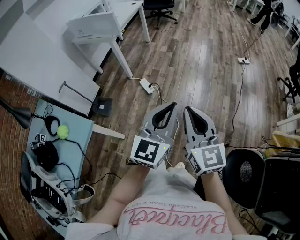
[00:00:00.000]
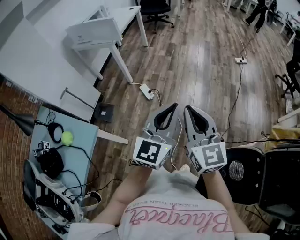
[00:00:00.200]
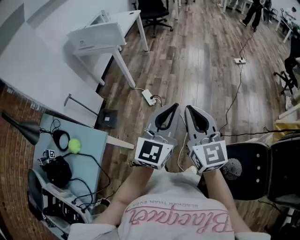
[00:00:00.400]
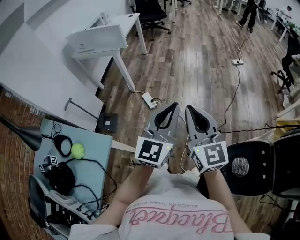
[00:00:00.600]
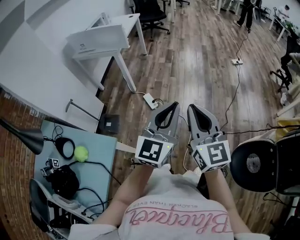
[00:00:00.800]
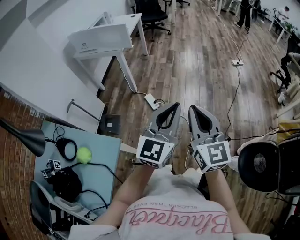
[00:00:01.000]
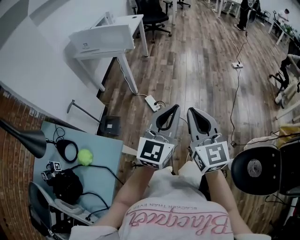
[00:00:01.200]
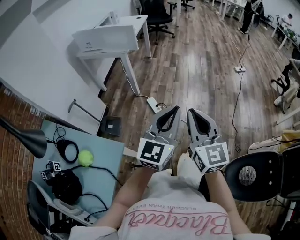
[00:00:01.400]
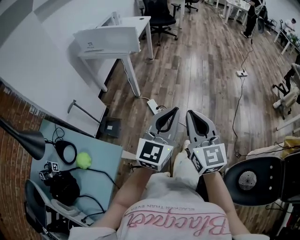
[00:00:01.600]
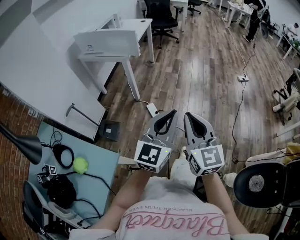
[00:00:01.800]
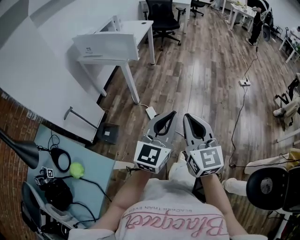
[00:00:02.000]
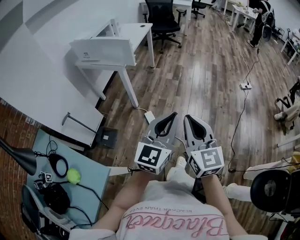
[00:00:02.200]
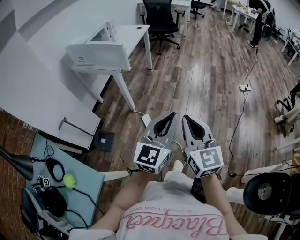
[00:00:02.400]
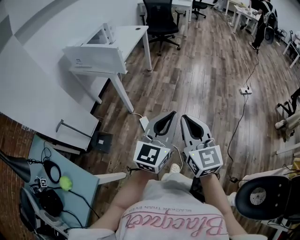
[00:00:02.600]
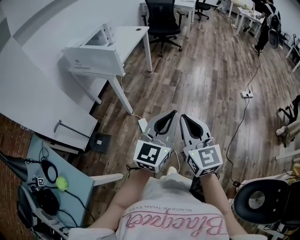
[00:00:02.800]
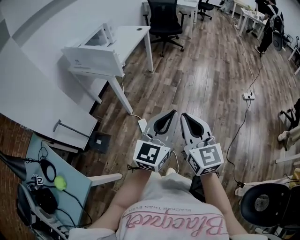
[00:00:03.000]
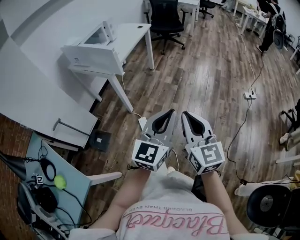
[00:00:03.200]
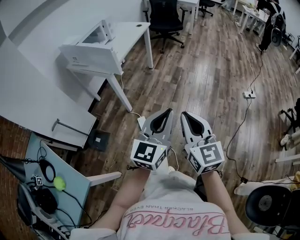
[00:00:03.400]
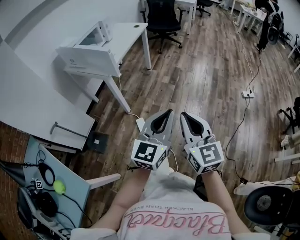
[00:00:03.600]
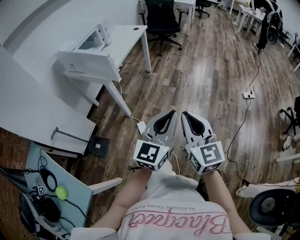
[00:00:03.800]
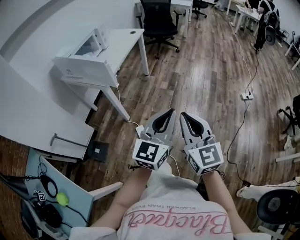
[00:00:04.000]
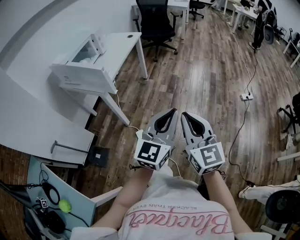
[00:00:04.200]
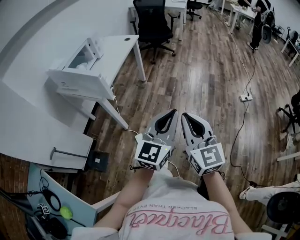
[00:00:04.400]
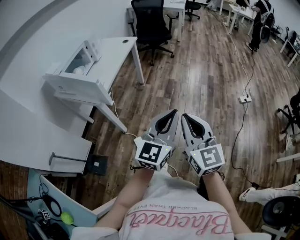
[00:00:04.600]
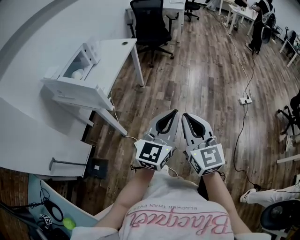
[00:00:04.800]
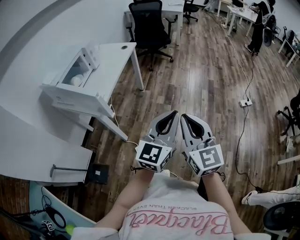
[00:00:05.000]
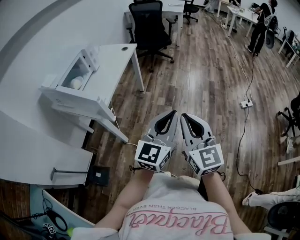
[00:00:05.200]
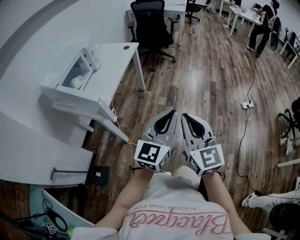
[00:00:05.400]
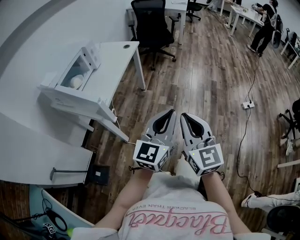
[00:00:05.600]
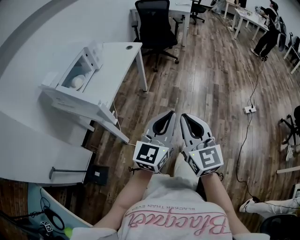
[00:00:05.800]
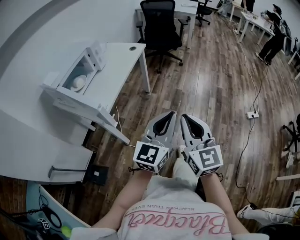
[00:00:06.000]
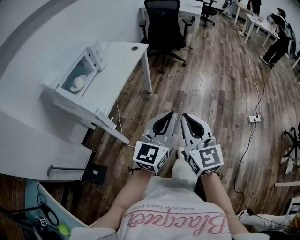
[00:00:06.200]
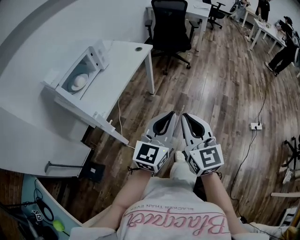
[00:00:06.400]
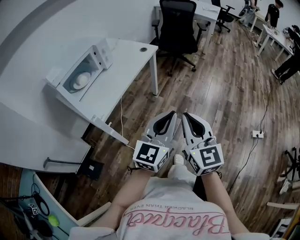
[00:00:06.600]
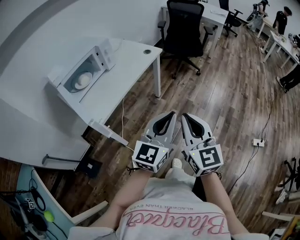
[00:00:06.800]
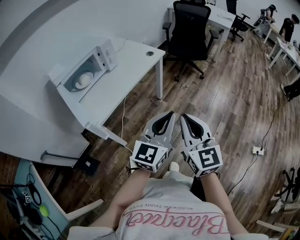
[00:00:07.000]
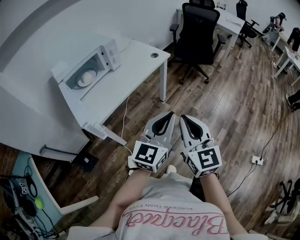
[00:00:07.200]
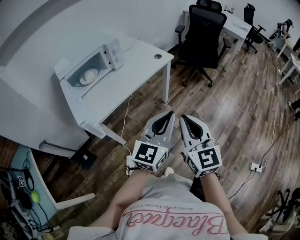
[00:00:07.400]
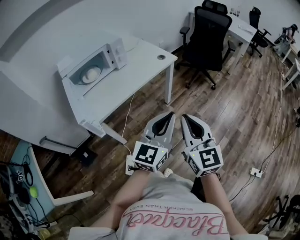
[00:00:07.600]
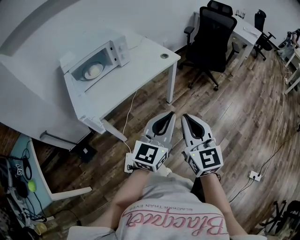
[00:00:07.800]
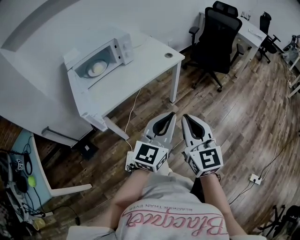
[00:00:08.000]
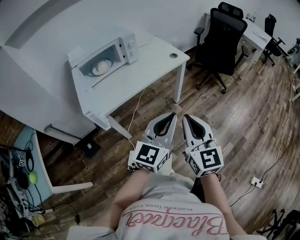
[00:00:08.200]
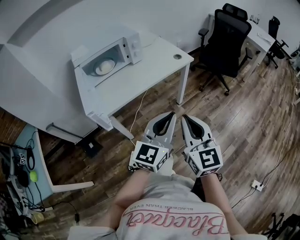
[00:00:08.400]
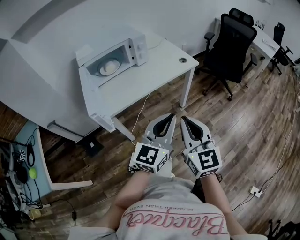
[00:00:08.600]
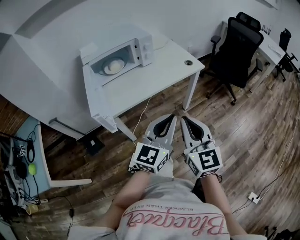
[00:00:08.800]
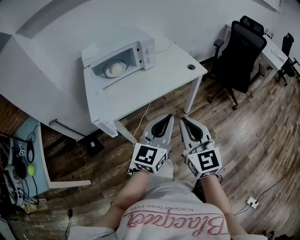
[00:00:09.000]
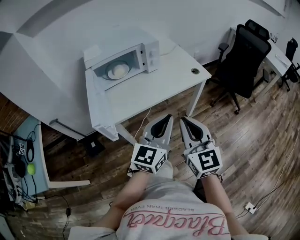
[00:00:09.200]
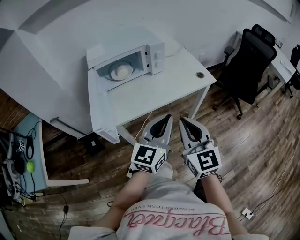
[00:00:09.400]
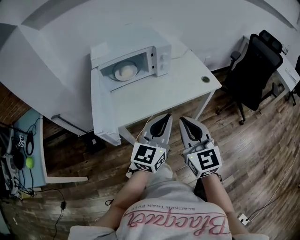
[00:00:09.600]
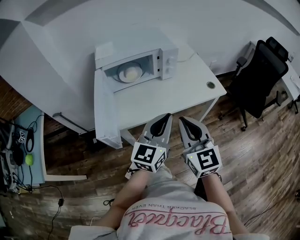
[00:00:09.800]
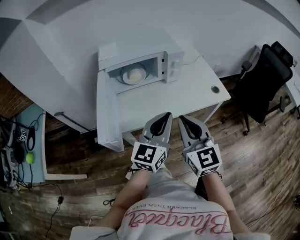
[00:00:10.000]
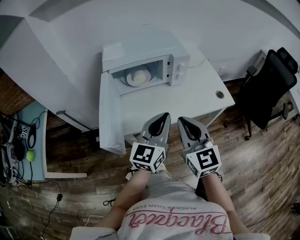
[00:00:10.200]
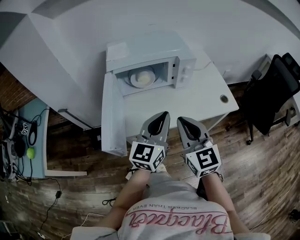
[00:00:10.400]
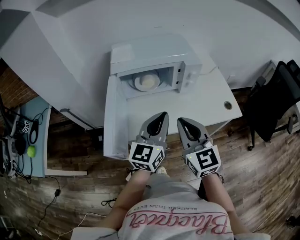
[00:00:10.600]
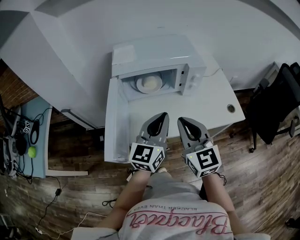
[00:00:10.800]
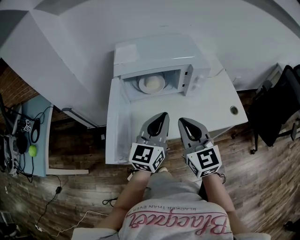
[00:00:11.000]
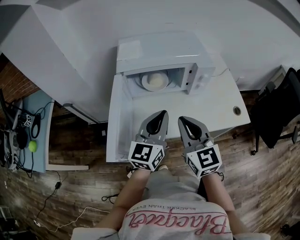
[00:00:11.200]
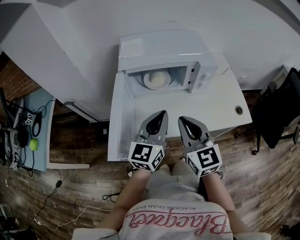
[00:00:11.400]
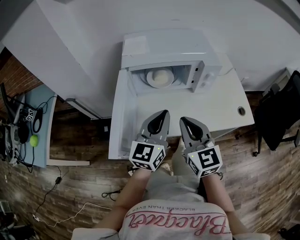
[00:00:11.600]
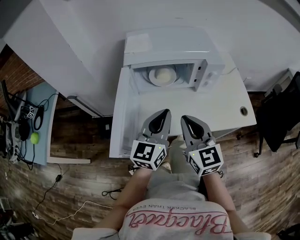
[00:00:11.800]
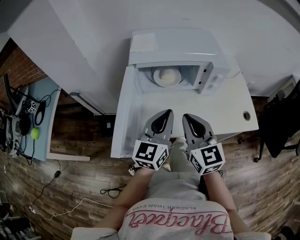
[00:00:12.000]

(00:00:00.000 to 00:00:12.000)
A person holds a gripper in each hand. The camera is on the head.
00:00:00.000 - 00:00:01.600: The grippers both shift to the left by approximately 20 cm.
00:00:01.600 - 00:00:03.000: The two grippers go roughly 30 cm forward and to the right.
00:00:03.000 - 00:00:04.400: The grippers both shift forward by about 15 cm.
00:00:04.400 - 00:00:06.000: The grippers both shift forward by roughly 20 cm.
00:00:06.000 - 00:00:07.600: The left gripper ends up roughly 25 cm from where it was, and changes its angle by some 30 degrees. Meanwhile the right gripper shifts by approximately 25 cm, and rotates roughly 30 degrees.
00:00:07.600 - 00:00:09.000: The grippers both shift to the left and forward by approximately 10 cm.
00:00:09.000 - 00:00:10.400: Both grippers travel together forward and to the left, roughly 20 cm. The left gripper turns by approximately 20 degrees; the right gripper rotates roughly 20 degrees.
00:00:10.400 - 00:00:12.000: The two grippers go roughly 10 cm forward and to the left.

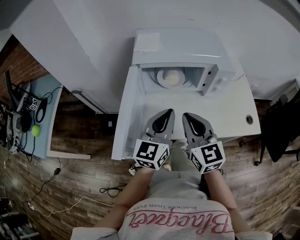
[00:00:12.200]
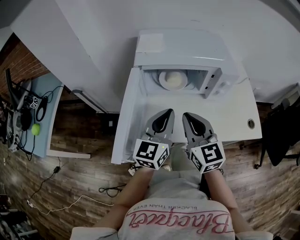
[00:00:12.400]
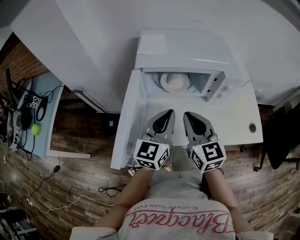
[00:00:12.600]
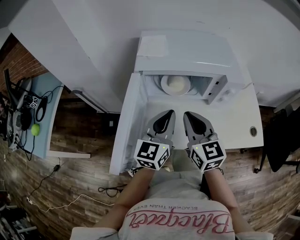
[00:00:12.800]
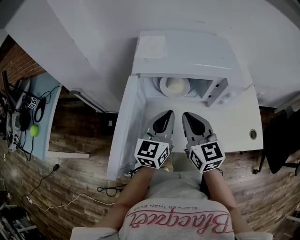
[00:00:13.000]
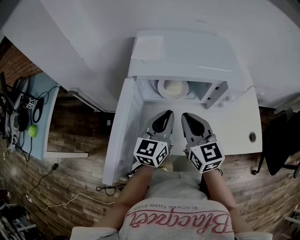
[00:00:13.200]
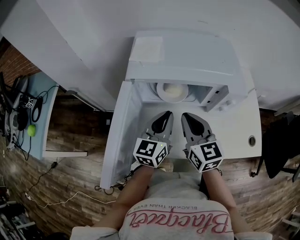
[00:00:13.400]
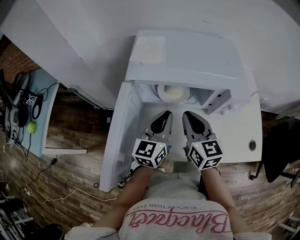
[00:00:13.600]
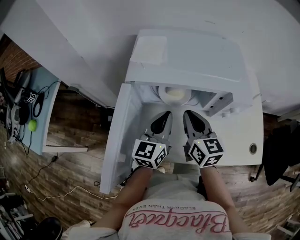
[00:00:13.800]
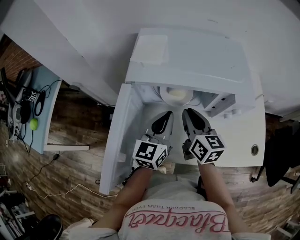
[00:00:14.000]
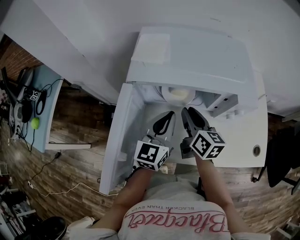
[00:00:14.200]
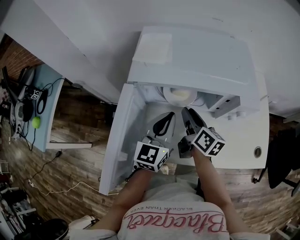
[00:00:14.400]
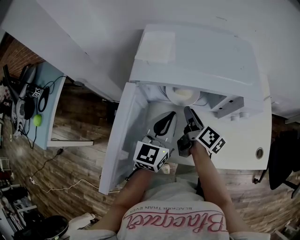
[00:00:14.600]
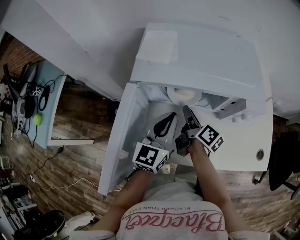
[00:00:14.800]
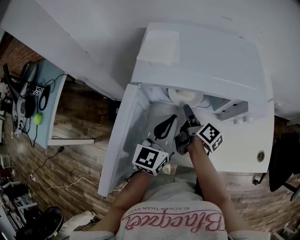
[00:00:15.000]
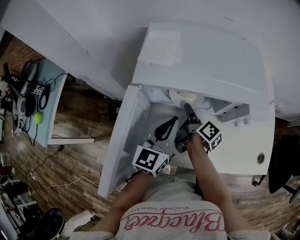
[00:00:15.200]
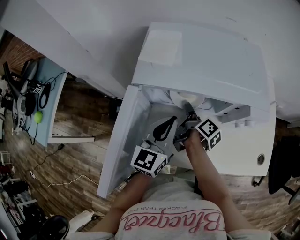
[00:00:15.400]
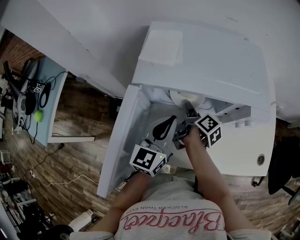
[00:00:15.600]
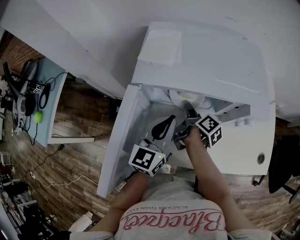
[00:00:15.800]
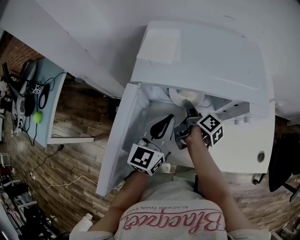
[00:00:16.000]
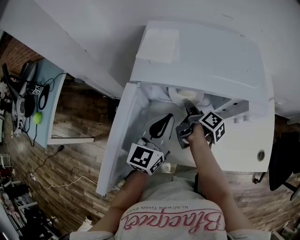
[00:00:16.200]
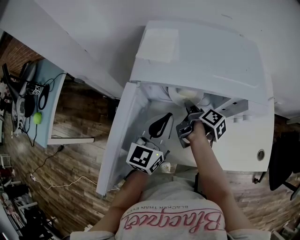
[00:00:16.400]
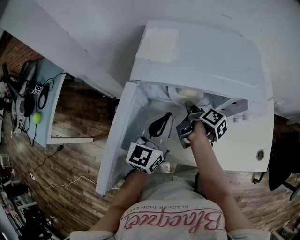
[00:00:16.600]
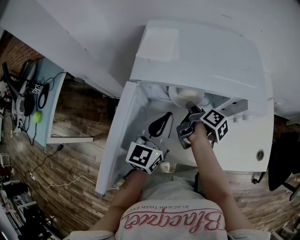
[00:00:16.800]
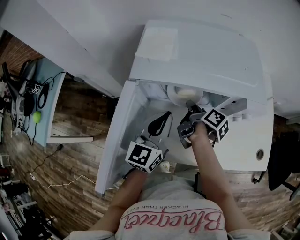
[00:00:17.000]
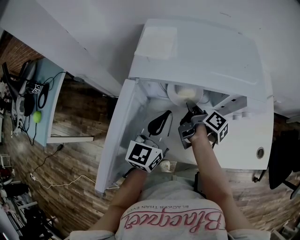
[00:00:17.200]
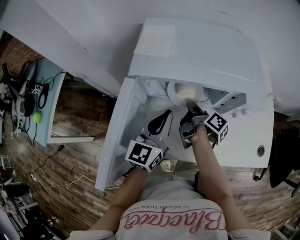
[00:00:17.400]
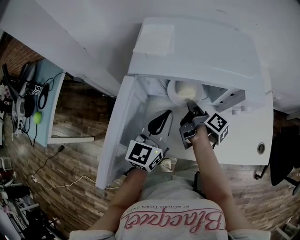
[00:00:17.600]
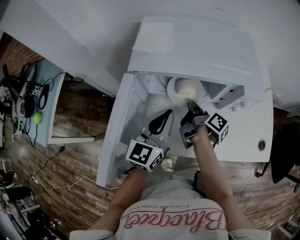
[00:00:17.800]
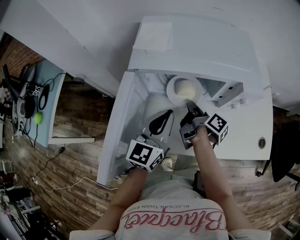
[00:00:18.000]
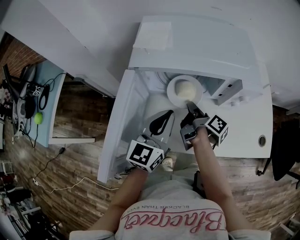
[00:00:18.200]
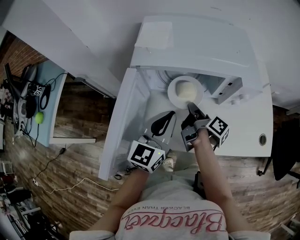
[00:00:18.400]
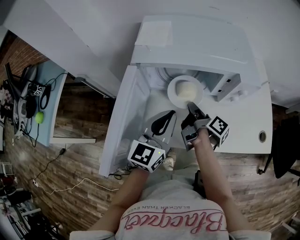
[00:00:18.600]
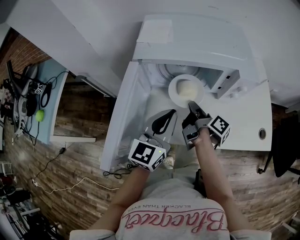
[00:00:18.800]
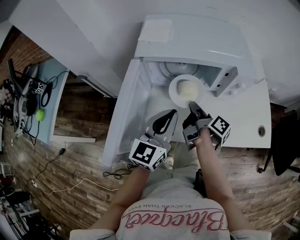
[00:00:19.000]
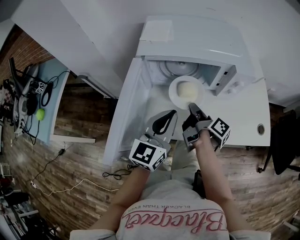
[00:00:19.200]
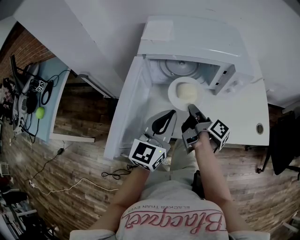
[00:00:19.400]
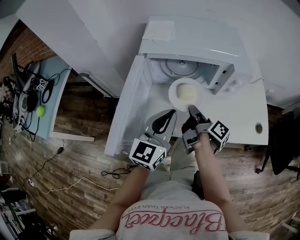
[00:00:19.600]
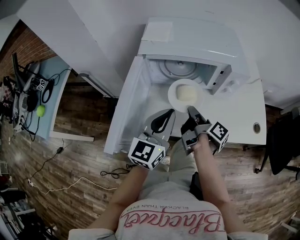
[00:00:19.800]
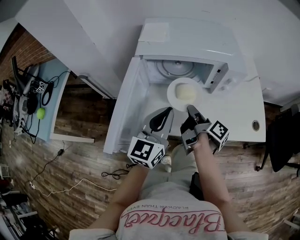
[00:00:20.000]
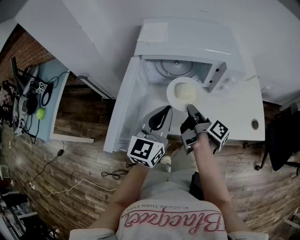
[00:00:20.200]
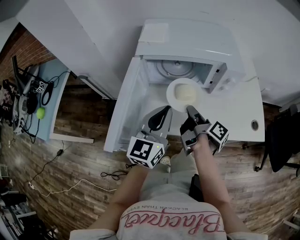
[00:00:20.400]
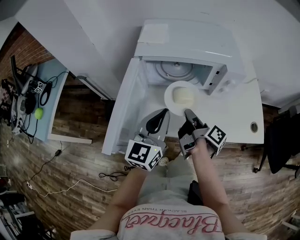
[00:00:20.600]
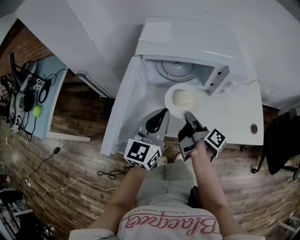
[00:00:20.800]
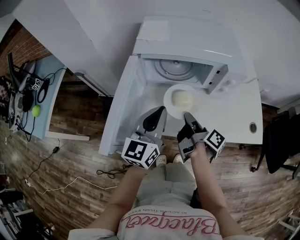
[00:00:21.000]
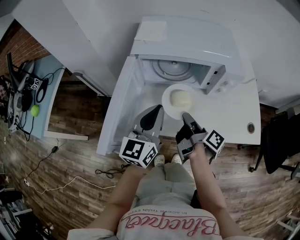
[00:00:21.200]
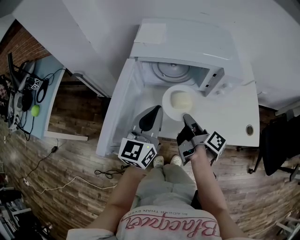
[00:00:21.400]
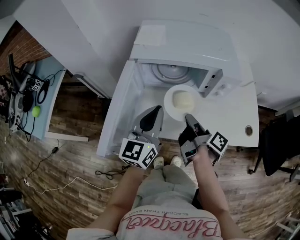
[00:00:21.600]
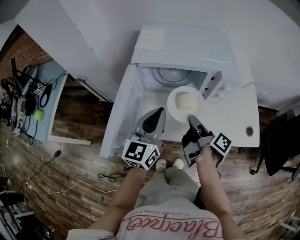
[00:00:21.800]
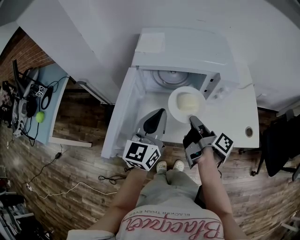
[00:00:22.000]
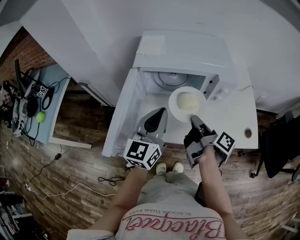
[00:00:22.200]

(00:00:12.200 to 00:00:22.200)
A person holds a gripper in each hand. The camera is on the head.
00:00:12.200 - 00:00:13.600: The left gripper moves forward and downward, about 15 cm. The right gripper heads forward, covering roughly 15 cm.
00:00:13.600 - 00:00:15.000: The right gripper shifts some 15 cm downward and forward, rolls clockwise, seen from behind, by approximately 70 degrees, and opens up.
00:00:15.000 - 00:00:16.400: The grippers move only a little.
00:00:16.400 - 00:00:18.000: The right gripper shifts by some 5 cm, and closes.
00:00:18.000 - 00:00:19.400: Both grippers move backward, roughly 10 cm.
00:00:19.400 - 00:00:20.800: There are only small adjustments of the grippers.
00:00:20.800 - 00:00:22.200: The right gripper is displaced upward by about 10 cm.

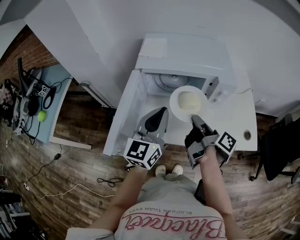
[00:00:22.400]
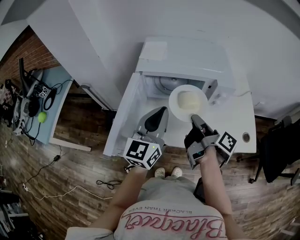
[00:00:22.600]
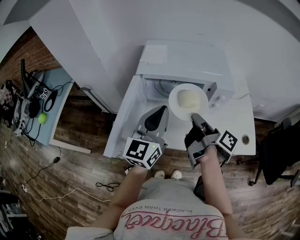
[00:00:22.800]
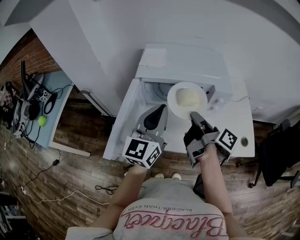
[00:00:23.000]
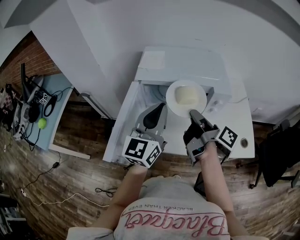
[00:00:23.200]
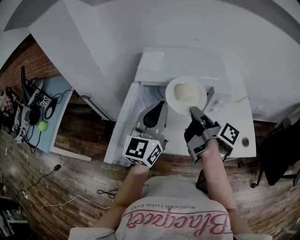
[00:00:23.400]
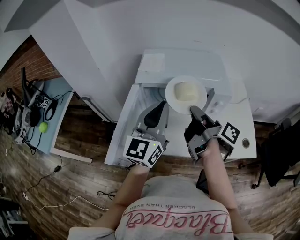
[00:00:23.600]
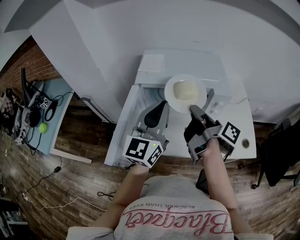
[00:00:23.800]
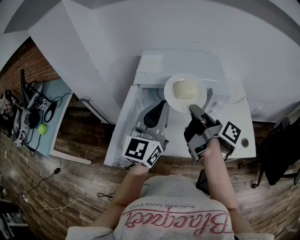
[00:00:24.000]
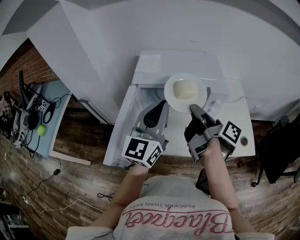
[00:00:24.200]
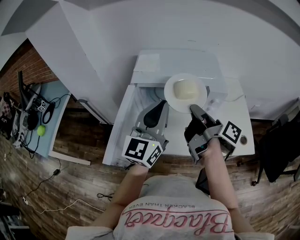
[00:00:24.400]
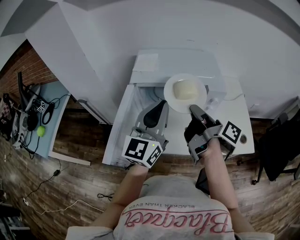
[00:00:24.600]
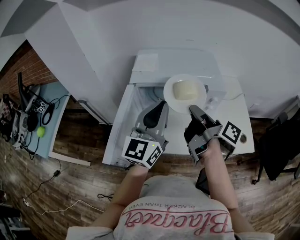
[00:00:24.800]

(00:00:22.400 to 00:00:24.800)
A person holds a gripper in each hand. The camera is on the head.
00:00:22.400 - 00:00:23.600: Both grippers move upward, roughly 10 cm.
00:00:23.600 - 00:00:24.800: The grippers move only a little.
